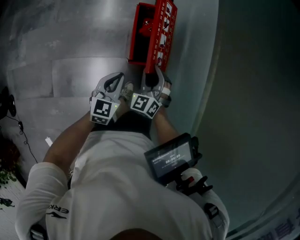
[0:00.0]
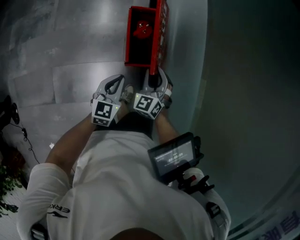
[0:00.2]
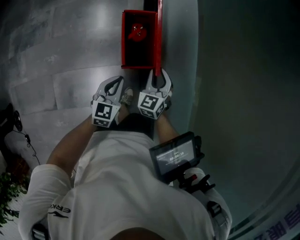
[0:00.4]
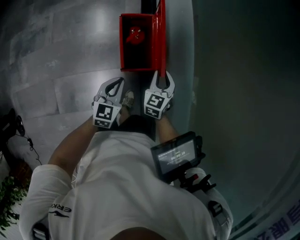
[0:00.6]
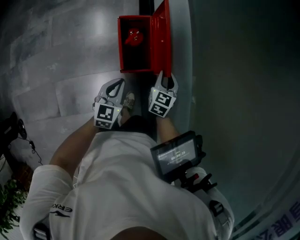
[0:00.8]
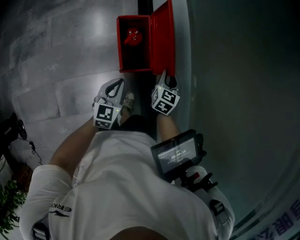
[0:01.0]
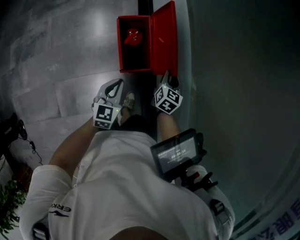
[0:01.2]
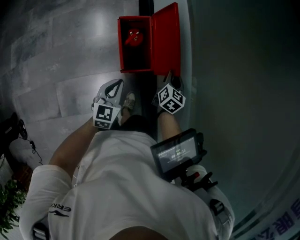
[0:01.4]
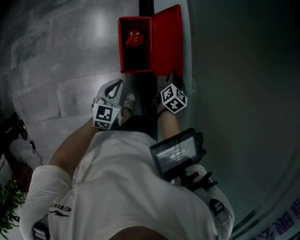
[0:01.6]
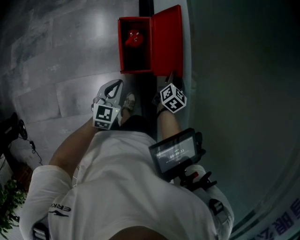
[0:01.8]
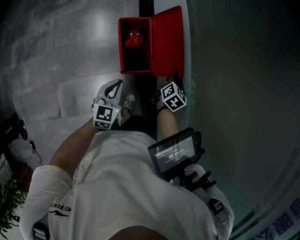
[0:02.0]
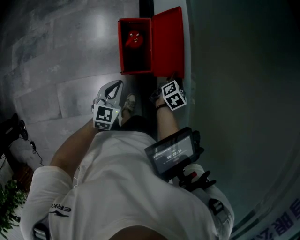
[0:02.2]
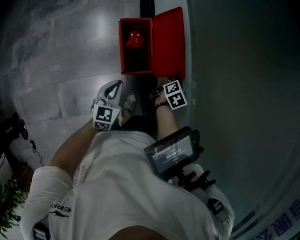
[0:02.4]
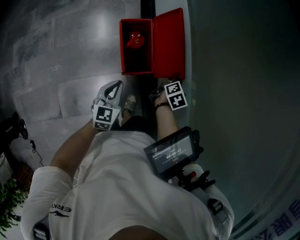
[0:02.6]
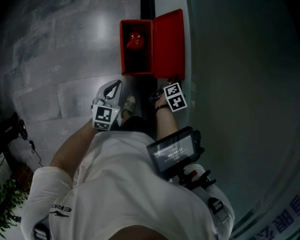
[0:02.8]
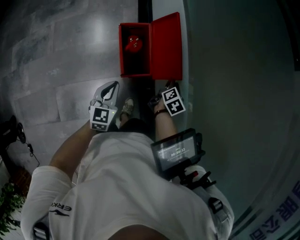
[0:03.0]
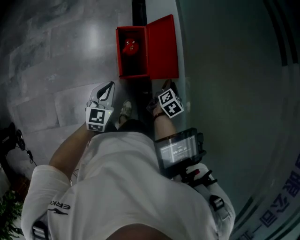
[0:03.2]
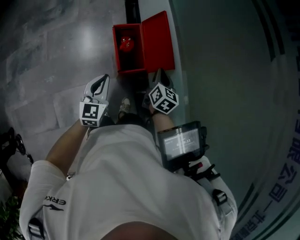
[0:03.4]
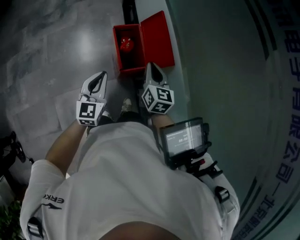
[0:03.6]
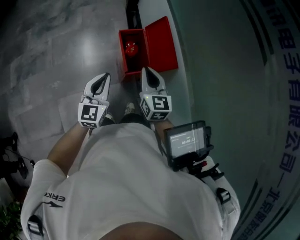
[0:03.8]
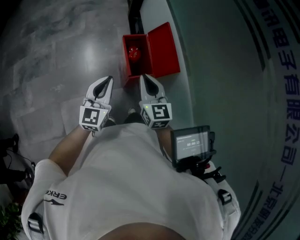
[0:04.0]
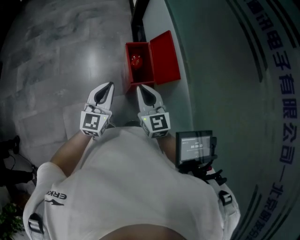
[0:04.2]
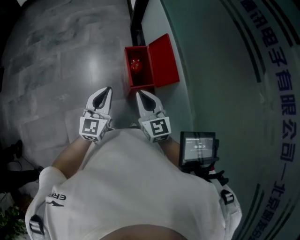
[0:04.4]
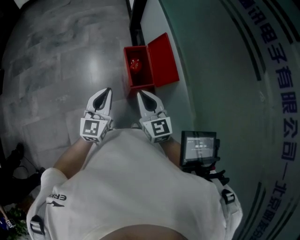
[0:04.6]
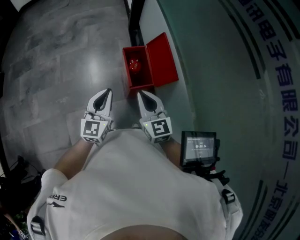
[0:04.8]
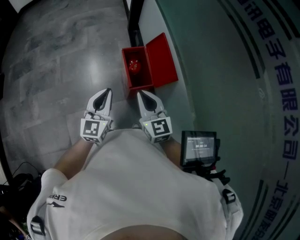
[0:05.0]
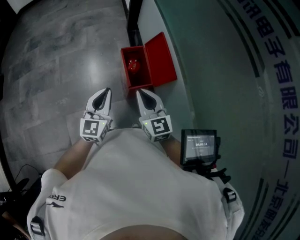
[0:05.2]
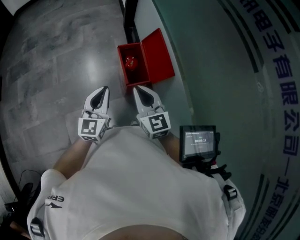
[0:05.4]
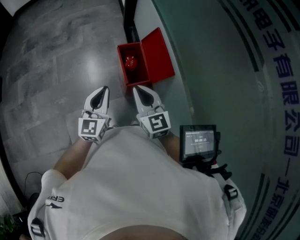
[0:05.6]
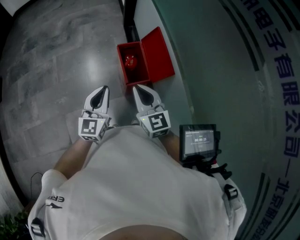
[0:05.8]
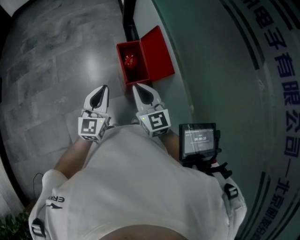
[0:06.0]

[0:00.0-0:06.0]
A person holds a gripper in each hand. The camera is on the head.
0:00.0 to 0:01.6: The right gripper goes some 20 cm to the right and forward, and twists some 70 degrees clockwise, seen from behind. Meanwhile the left gripper shifts by about 5 cm.
0:01.6 to 0:03.0: The right gripper swivels approximately 20 degrees.
0:03.0 to 0:04.4: The left gripper shifts some 15 cm upward, and turns by approximately 20 degrees. The right gripper ends up roughly 35 cm from where it was, and turns by about 70 degrees.
0:04.4 to 0:06.0: The grippers stay close to where they were, moving slightly.

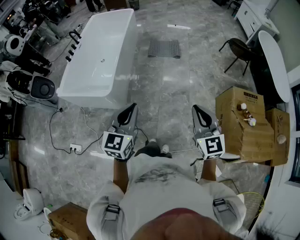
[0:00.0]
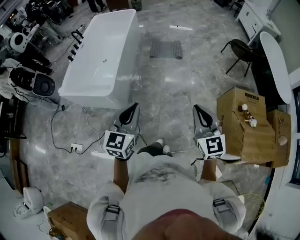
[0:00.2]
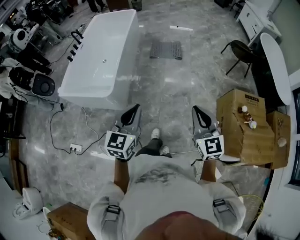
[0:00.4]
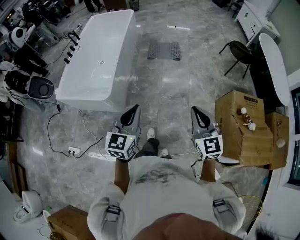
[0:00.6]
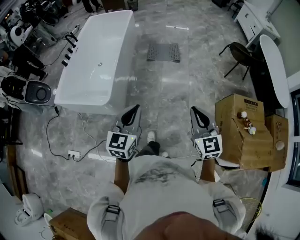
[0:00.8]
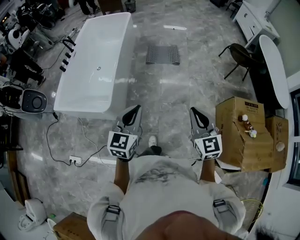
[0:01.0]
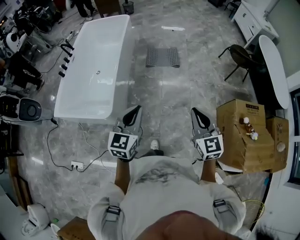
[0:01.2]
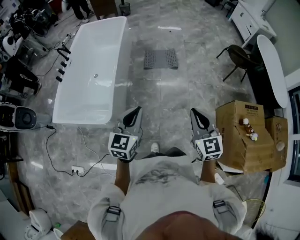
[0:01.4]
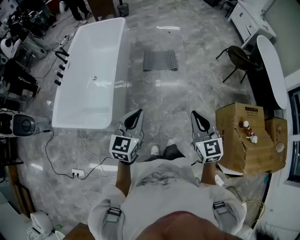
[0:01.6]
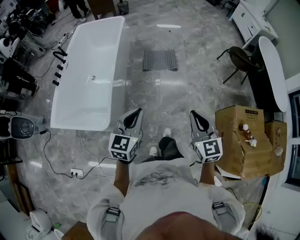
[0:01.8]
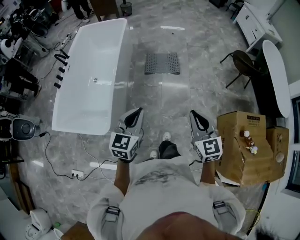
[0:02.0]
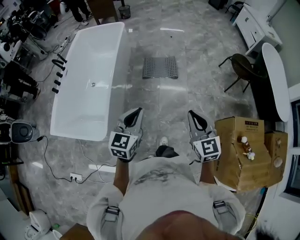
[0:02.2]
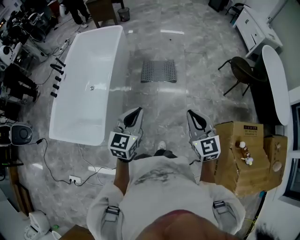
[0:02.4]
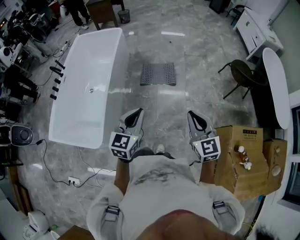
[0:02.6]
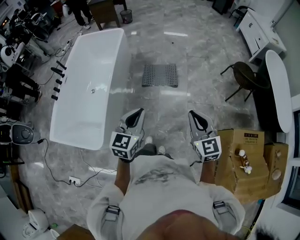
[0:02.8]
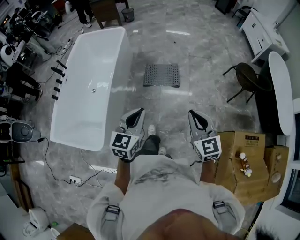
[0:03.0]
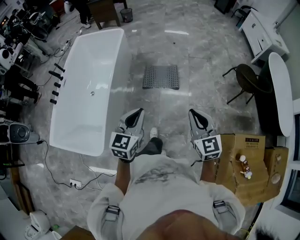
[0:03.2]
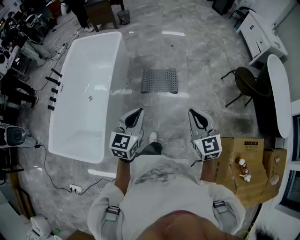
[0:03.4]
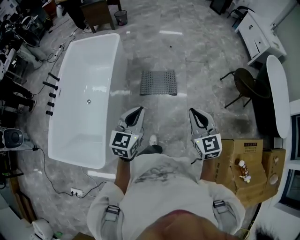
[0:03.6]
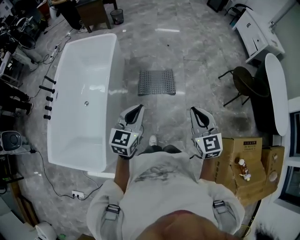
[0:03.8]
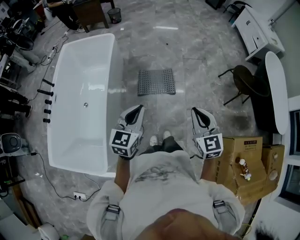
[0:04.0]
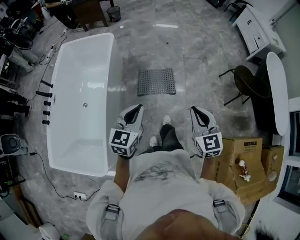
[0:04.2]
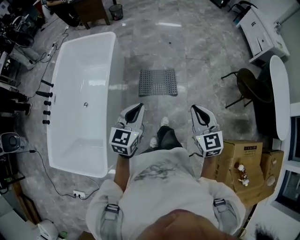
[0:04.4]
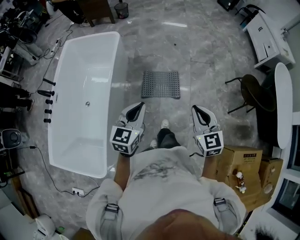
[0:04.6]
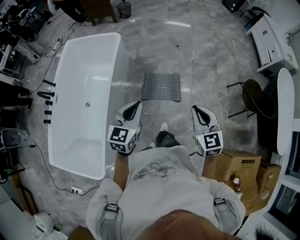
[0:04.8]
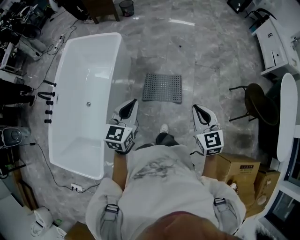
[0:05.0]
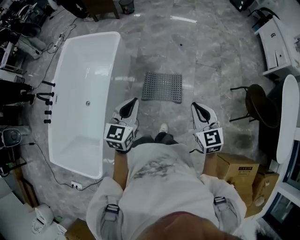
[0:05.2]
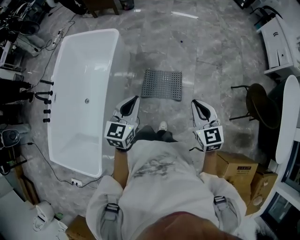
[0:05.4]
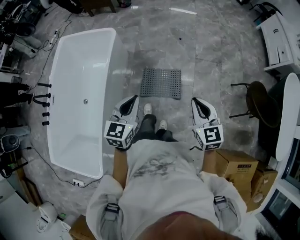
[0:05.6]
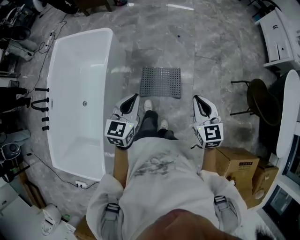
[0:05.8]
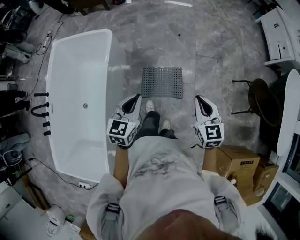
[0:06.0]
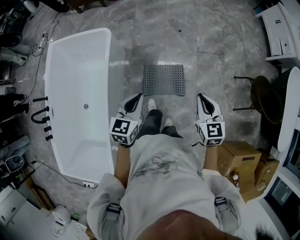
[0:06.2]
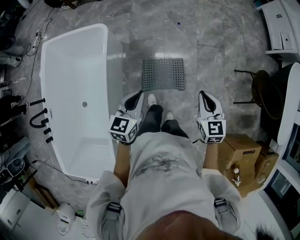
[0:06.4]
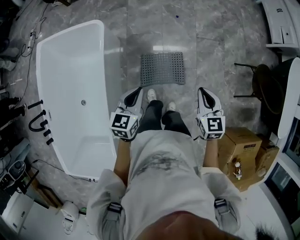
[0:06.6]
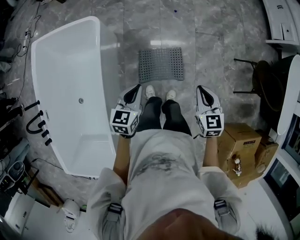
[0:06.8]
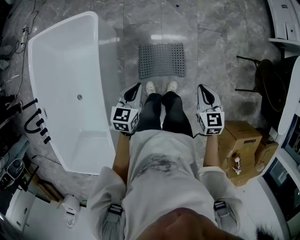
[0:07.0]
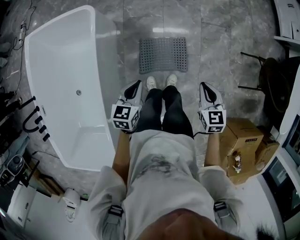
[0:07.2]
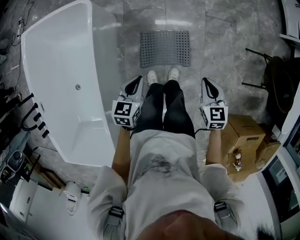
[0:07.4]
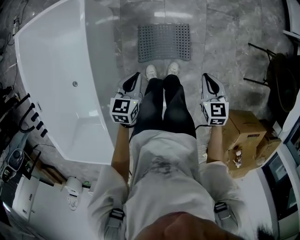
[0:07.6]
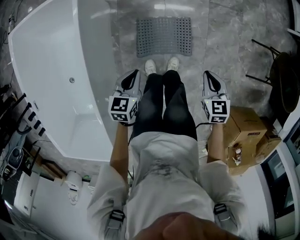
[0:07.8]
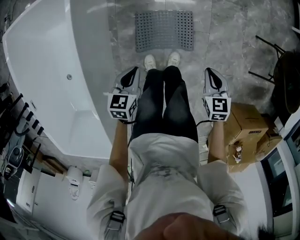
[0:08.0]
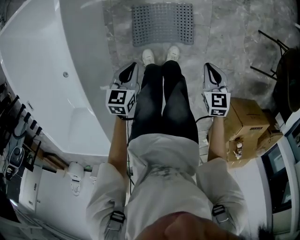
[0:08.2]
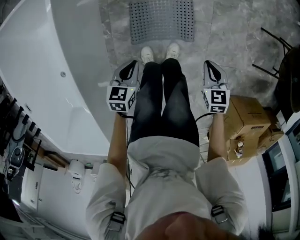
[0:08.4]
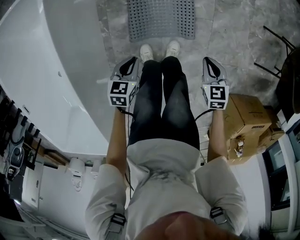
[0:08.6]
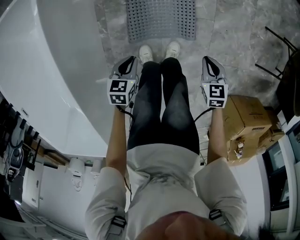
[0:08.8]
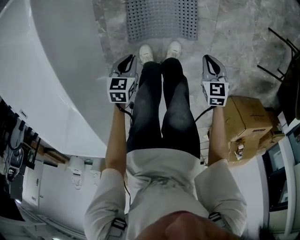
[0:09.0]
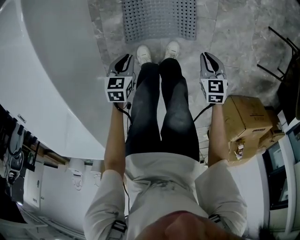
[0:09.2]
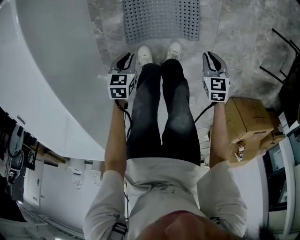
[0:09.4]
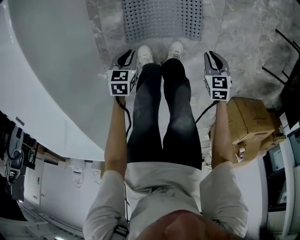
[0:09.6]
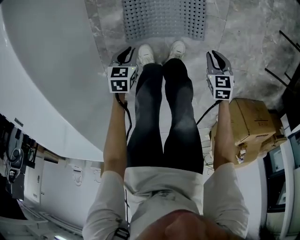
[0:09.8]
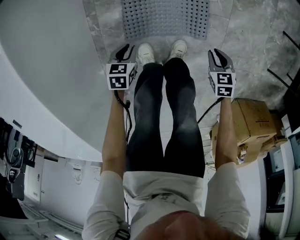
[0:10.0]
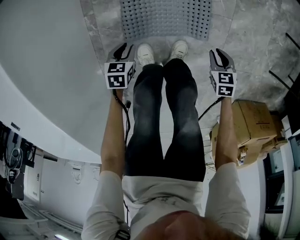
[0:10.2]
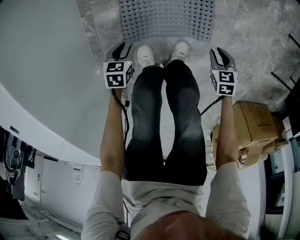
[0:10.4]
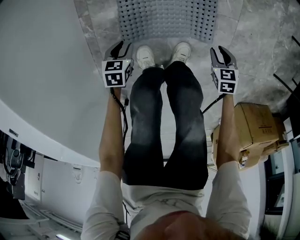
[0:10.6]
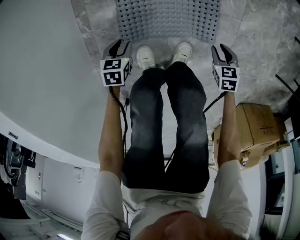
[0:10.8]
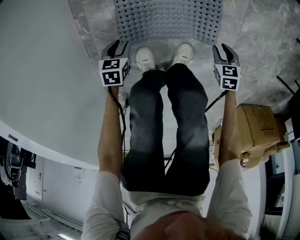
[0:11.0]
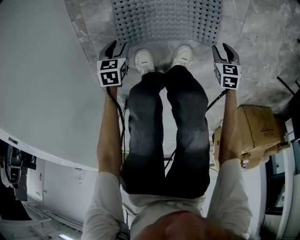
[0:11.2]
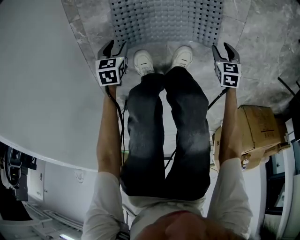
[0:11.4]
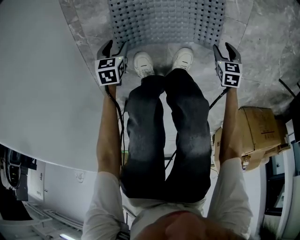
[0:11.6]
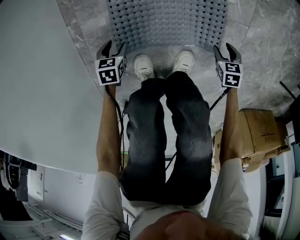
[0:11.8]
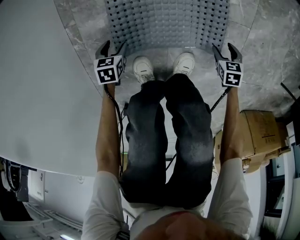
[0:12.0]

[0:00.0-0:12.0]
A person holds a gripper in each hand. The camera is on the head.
0:00.0 to 0:01.6: The grippers both shift forward by roughly 25 cm.
0:01.6 to 0:03.0: The two grippers go approximately 25 cm forward.
0:03.0 to 0:04.4: Both grippers move forward, roughly 30 cm.
0:04.4 to 0:06.0: The two grippers go approximately 30 cm forward.
0:06.0 to 0:07.6: The grippers both shift downward by approximately 30 cm. The right gripper swivels approximately 20 degrees.
0:07.6 to 0:09.0: The grippers both shift downward by roughly 30 cm.
0:09.0 to 0:10.4: Both grippers travel together downward, about 25 cm.
0:10.4 to 0:12.0: The grippers both shift downward by approximately 20 cm. The left gripper opens up, while the right gripper opens.

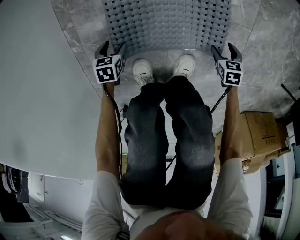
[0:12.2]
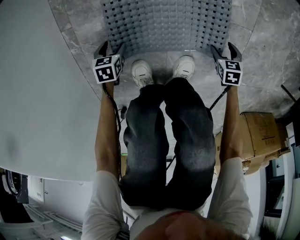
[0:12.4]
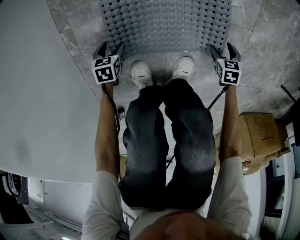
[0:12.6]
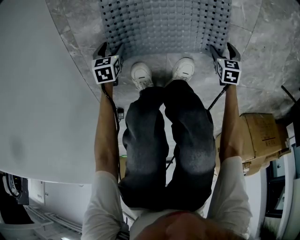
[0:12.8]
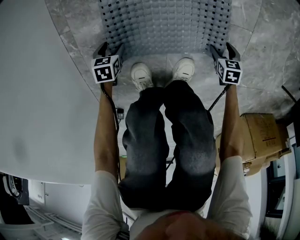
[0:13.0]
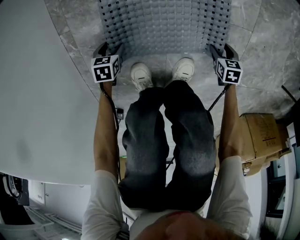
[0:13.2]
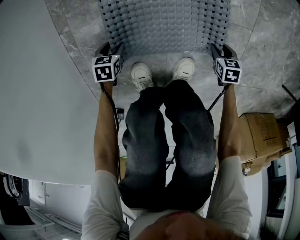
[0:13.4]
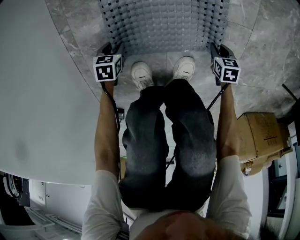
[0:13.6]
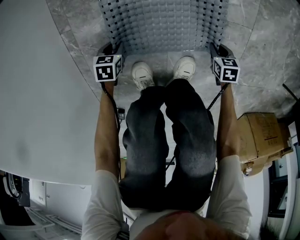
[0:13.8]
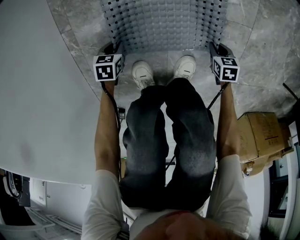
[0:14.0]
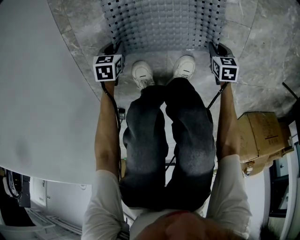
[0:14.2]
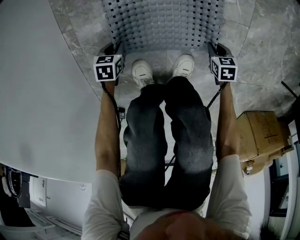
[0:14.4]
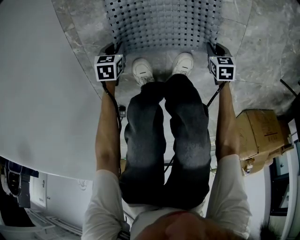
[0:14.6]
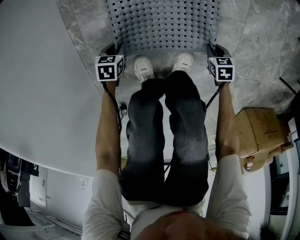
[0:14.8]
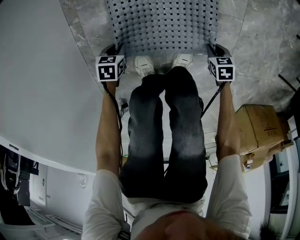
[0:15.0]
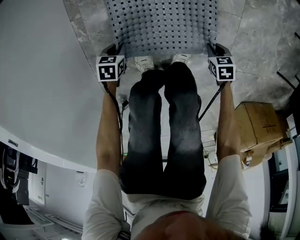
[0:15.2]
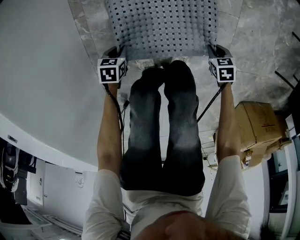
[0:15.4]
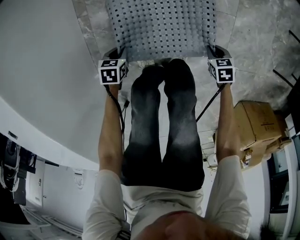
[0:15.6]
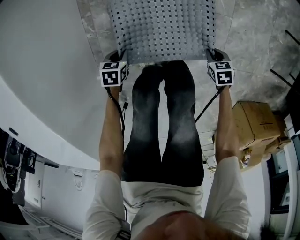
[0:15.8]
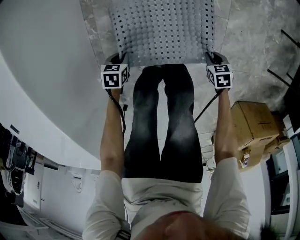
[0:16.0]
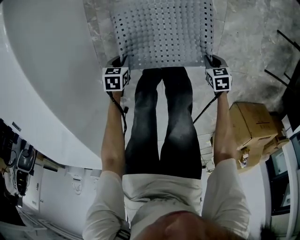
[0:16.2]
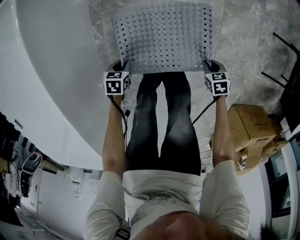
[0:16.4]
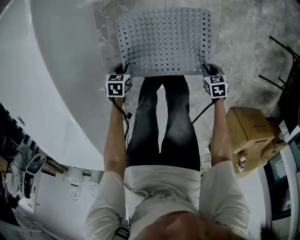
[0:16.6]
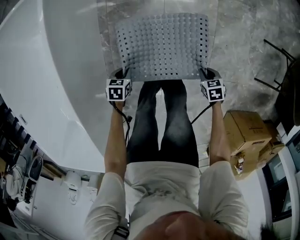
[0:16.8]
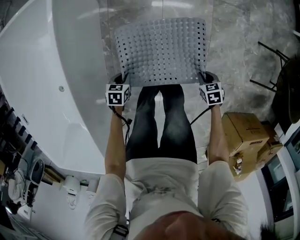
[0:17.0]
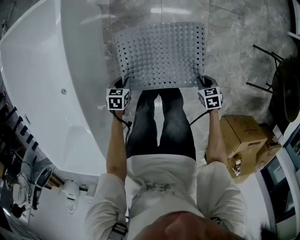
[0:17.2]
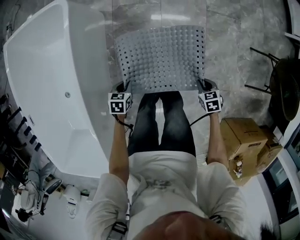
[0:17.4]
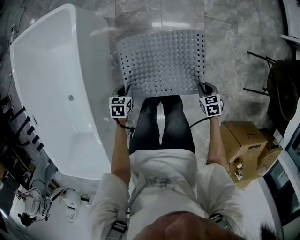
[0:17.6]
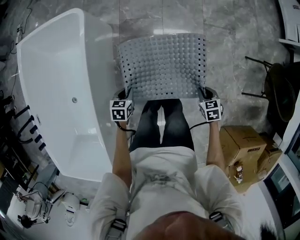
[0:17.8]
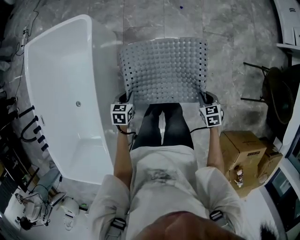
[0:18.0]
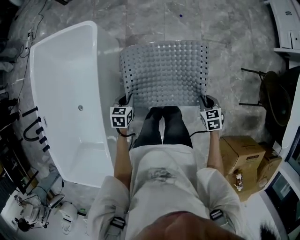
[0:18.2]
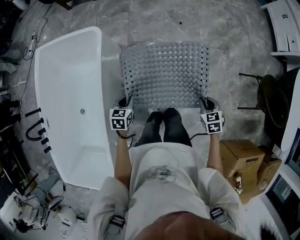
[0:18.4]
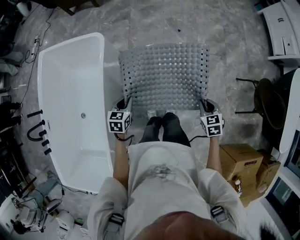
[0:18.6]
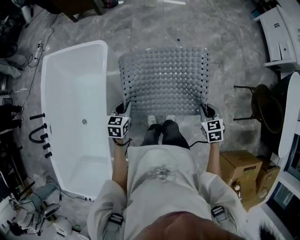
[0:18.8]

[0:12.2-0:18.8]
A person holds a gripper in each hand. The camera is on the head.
0:12.2 to 0:13.8: The right gripper closes its fingers. Meanwhile the left gripper closes up.
0:13.8 to 0:15.4: Both grippers travel together upward, some 15 cm.
0:15.4 to 0:17.2: Both grippers travel together upward, about 35 cm.
0:17.2 to 0:18.8: Both grippers travel together upward, roughly 40 cm. The left gripper changes its angle by approximately 30 degrees. The right gripper swivels roughly 30 degrees.
